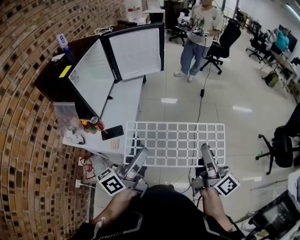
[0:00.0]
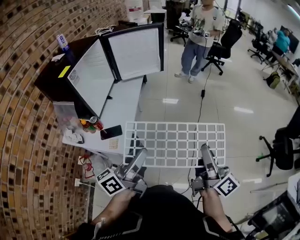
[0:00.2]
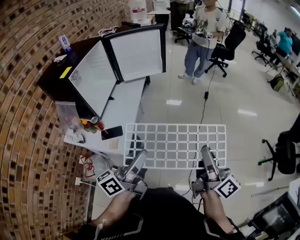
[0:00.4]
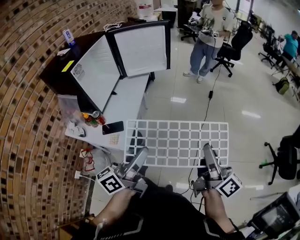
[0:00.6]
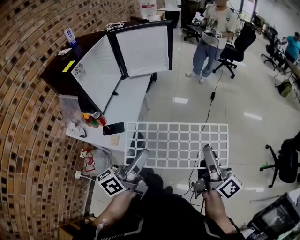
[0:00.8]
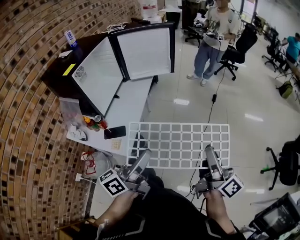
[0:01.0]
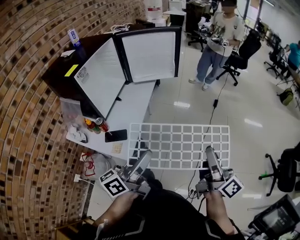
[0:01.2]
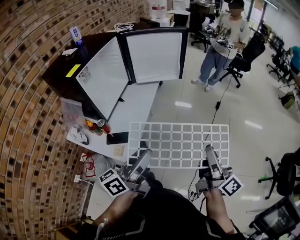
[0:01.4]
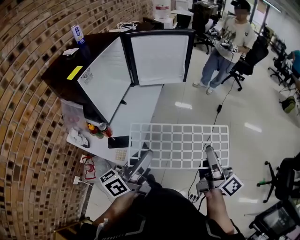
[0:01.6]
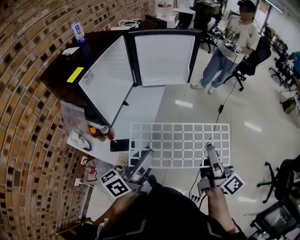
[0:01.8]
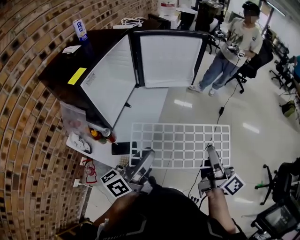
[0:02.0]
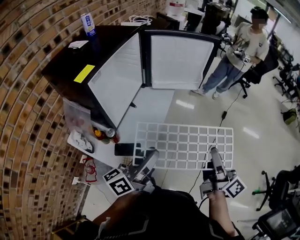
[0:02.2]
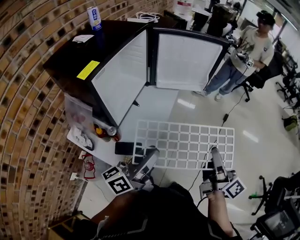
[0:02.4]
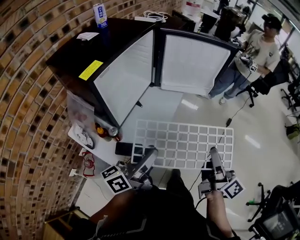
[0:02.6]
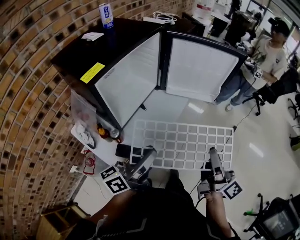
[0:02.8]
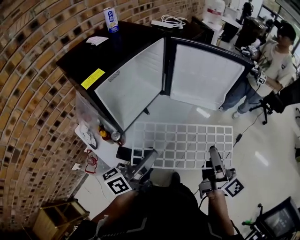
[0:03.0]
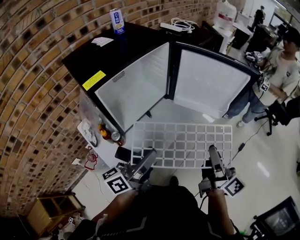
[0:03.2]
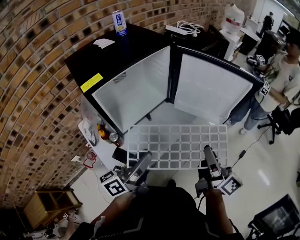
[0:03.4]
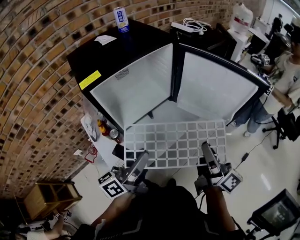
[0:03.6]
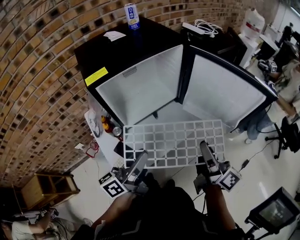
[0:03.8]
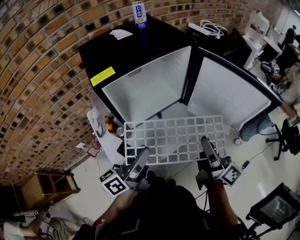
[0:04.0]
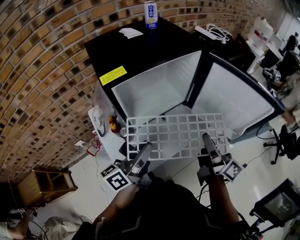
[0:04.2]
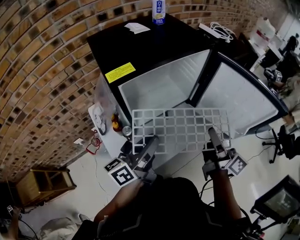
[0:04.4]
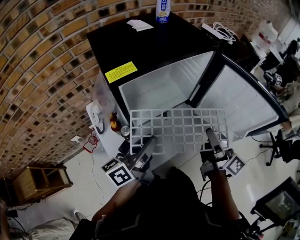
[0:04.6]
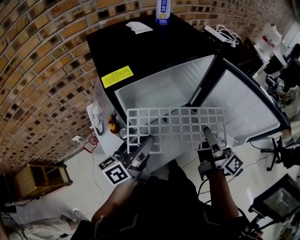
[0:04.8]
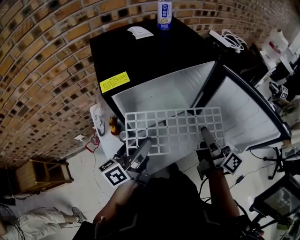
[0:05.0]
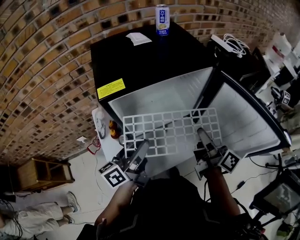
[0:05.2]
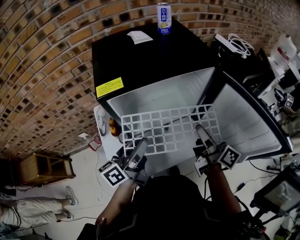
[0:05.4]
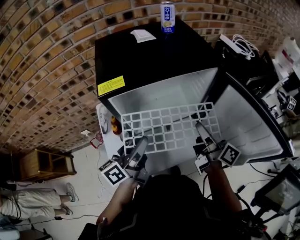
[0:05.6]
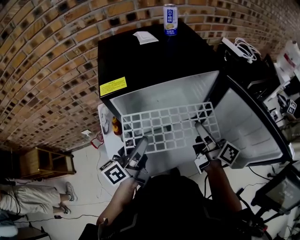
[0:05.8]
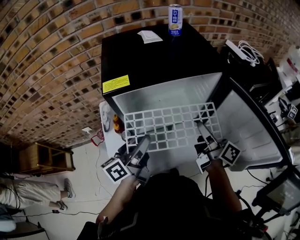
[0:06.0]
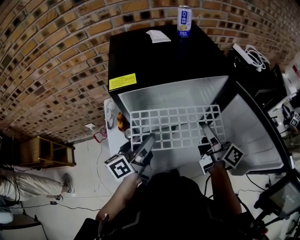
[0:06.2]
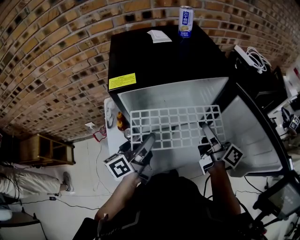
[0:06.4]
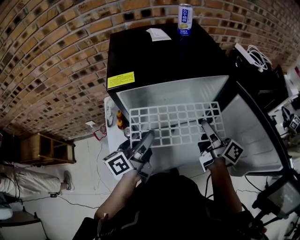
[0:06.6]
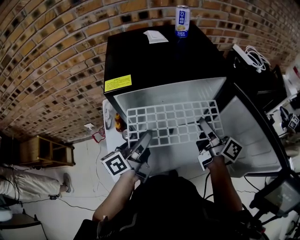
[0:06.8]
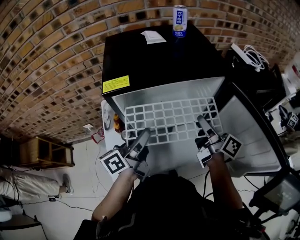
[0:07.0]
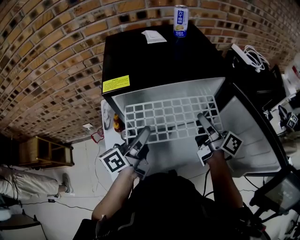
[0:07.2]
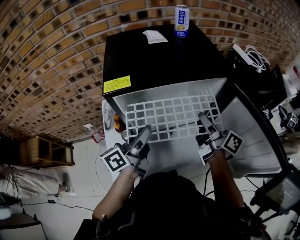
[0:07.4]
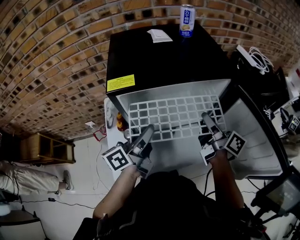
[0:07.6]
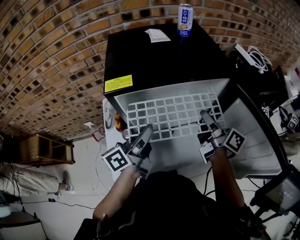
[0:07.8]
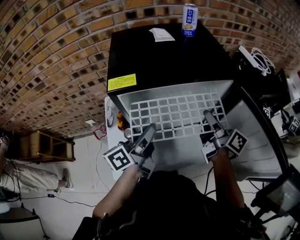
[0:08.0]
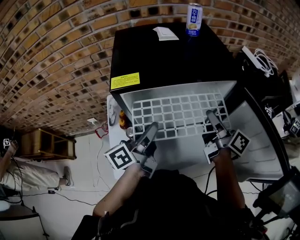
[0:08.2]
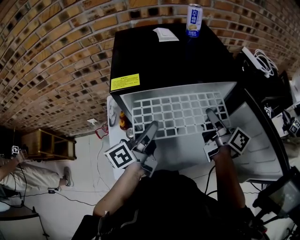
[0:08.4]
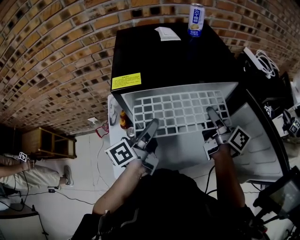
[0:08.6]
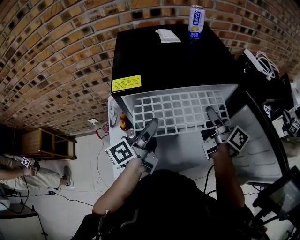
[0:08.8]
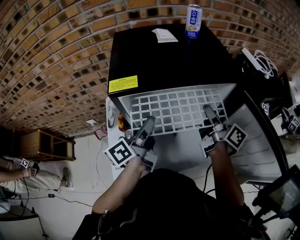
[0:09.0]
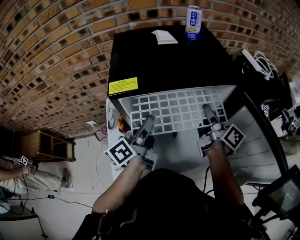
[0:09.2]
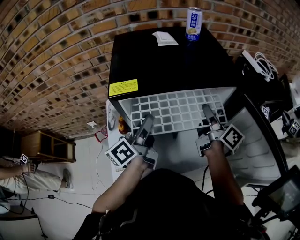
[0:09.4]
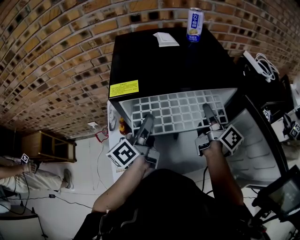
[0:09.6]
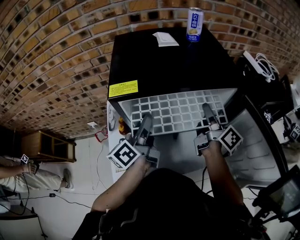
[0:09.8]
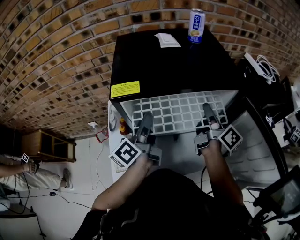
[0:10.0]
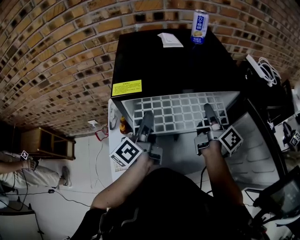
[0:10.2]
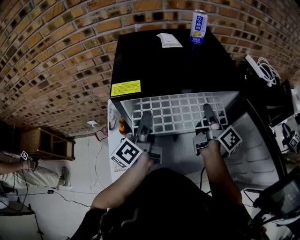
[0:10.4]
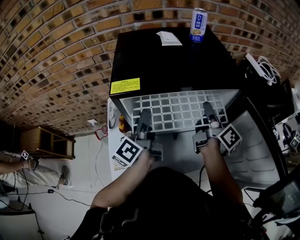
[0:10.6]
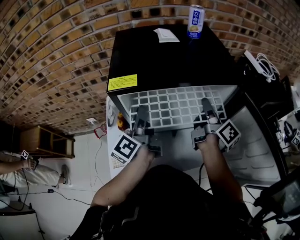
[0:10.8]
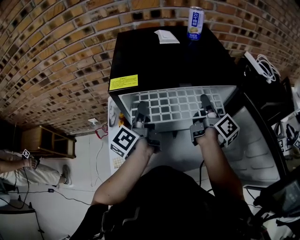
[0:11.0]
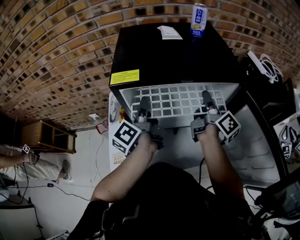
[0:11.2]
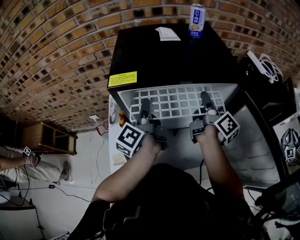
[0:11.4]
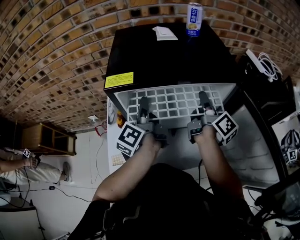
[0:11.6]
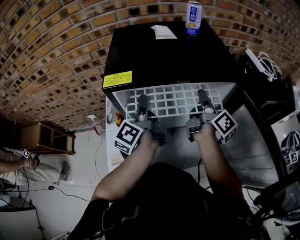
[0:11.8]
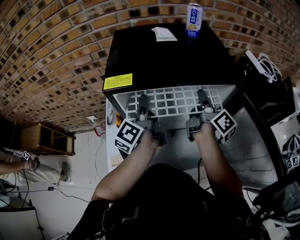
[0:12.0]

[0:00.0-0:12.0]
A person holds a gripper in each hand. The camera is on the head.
0:00.0 to 0:01.6: Both grippers move forward, about 15 cm.
0:01.6 to 0:03.0: Both grippers travel together forward and to the left, roughly 20 cm.
0:03.0 to 0:04.4: The right gripper shifts by approximately 20 cm, and turns by about 30 degrees, while the left gripper changes place by roughly 10 cm, and turns by approximately 30 degrees.
0:04.4 to 0:06.0: The right gripper heads forward, covering roughly 15 cm, and turns by approximately 20 degrees. The left gripper travels forward by about 5 cm.
0:06.0 to 0:07.6: The right gripper is displaced forward by some 5 cm.
0:07.6 to 0:09.0: The grippers make only small movements.
0:09.0 to 0:10.4: The grippers move only a little.
0:10.4 to 0:12.0: The grippers stay close to where they were, moving slightly.

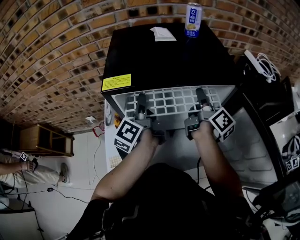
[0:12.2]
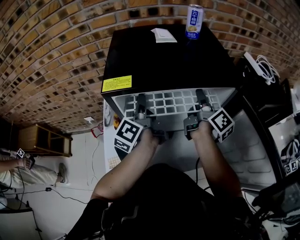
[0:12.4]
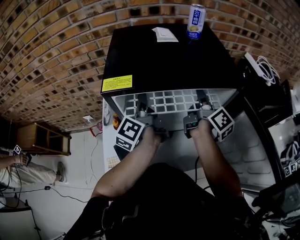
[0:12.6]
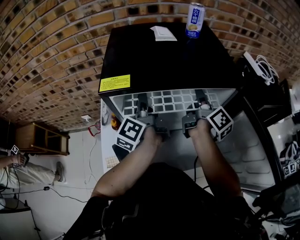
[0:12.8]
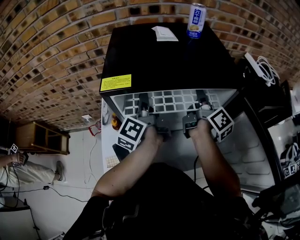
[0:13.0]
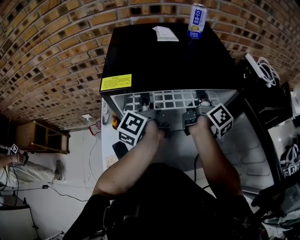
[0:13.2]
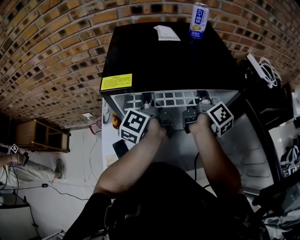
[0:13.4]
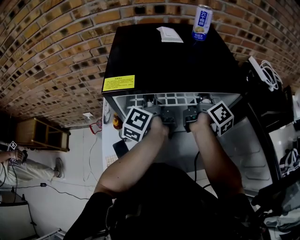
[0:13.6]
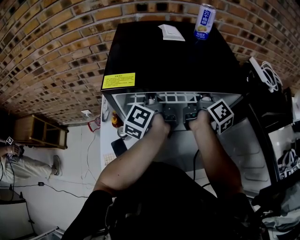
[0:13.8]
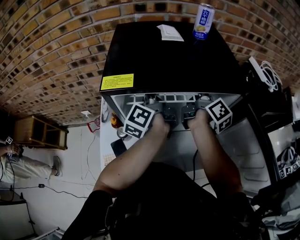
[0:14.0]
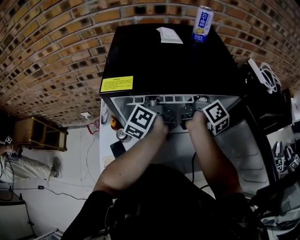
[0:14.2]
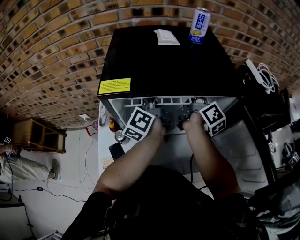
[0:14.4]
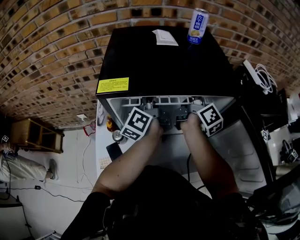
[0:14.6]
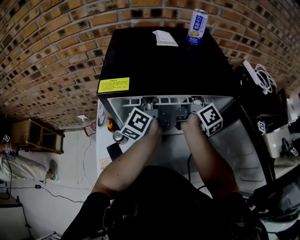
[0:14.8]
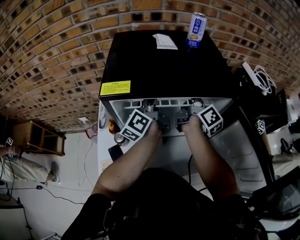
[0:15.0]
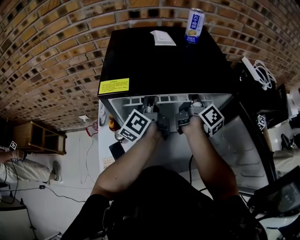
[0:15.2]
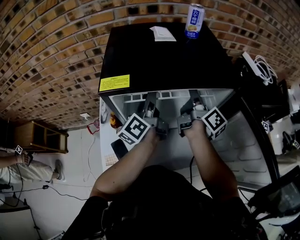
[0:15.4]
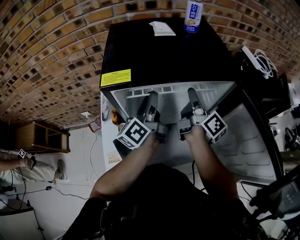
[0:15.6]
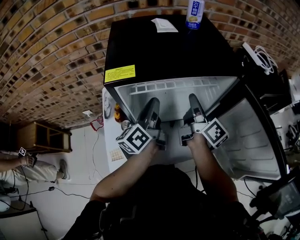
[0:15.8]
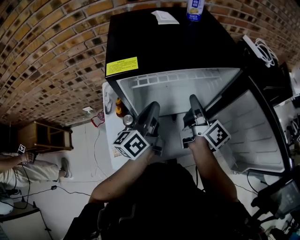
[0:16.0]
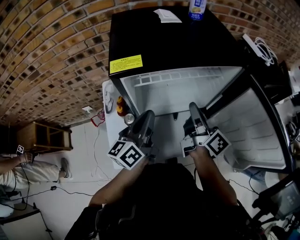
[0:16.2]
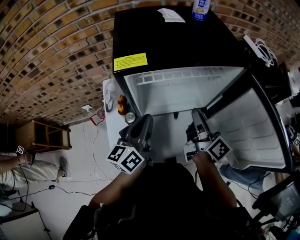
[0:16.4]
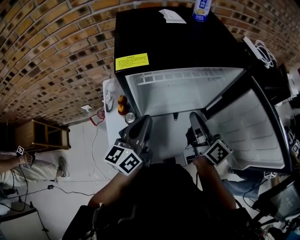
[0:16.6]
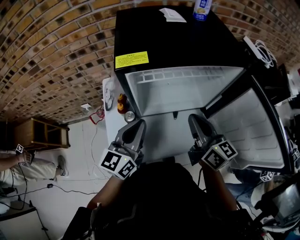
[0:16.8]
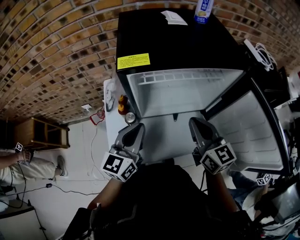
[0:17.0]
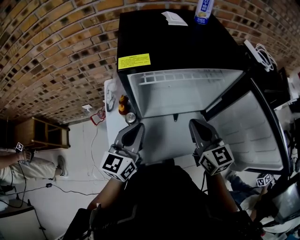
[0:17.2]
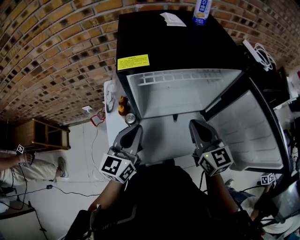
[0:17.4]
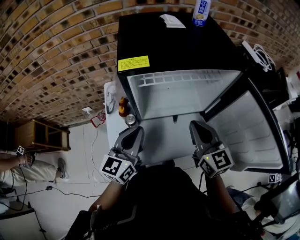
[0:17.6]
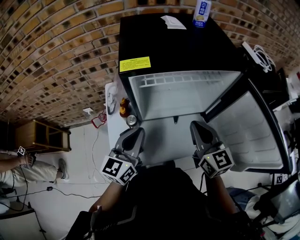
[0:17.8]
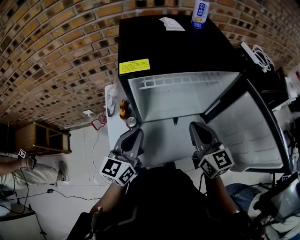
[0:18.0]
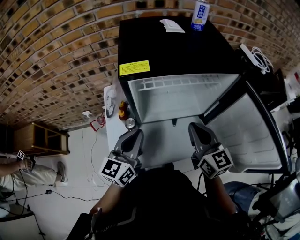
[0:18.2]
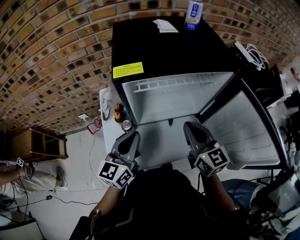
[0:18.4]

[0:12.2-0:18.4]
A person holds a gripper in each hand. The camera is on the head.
0:12.2 to 0:13.8: Both grippers move forward, about 5 cm.
0:13.8 to 0:15.4: The left gripper swivels some 20 degrees.
0:15.4 to 0:16.8: The grippers both shift backward by roughly 20 cm. The left gripper changes its angle by roughly 50 degrees, and closes its fingers; the right gripper rolls counterclockwise, seen from behind, by some 40 degrees, and closes its fingers.

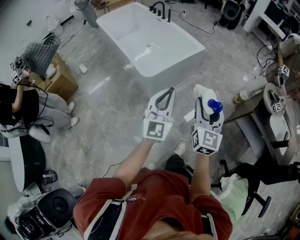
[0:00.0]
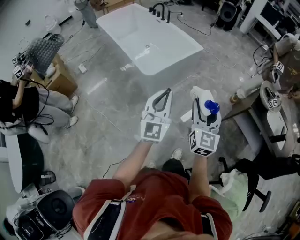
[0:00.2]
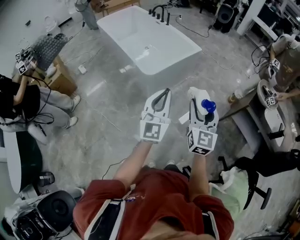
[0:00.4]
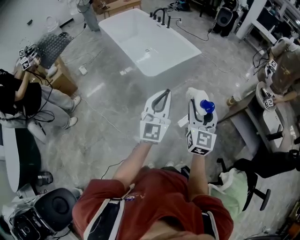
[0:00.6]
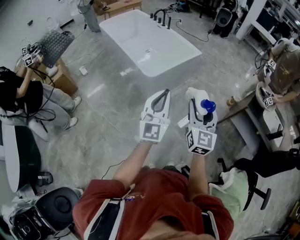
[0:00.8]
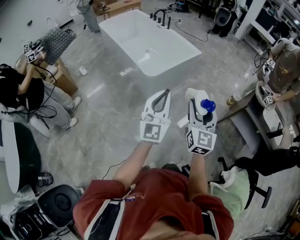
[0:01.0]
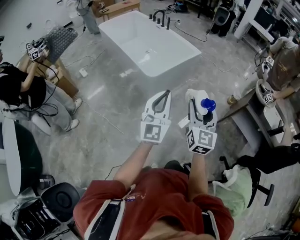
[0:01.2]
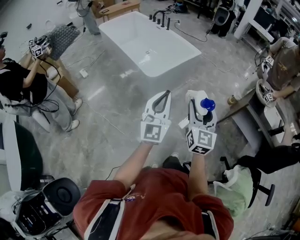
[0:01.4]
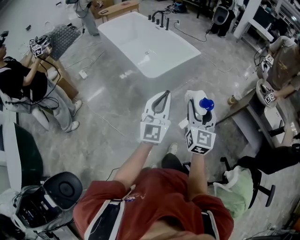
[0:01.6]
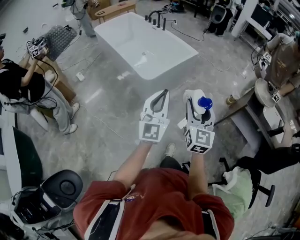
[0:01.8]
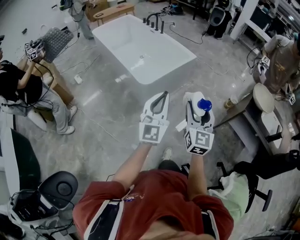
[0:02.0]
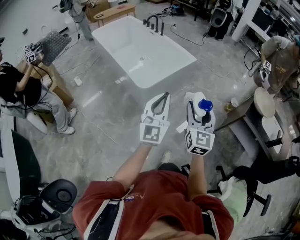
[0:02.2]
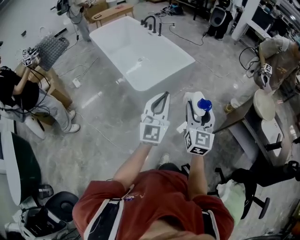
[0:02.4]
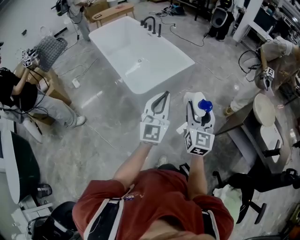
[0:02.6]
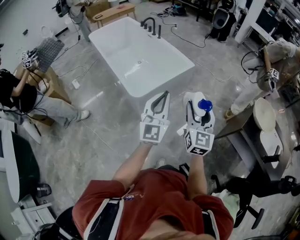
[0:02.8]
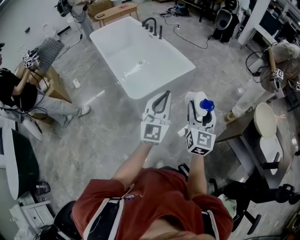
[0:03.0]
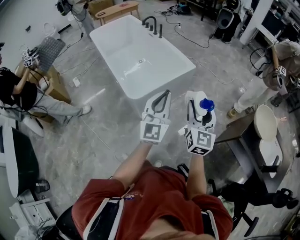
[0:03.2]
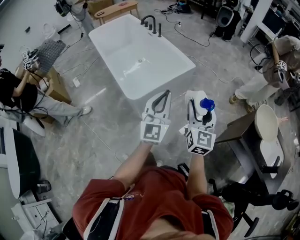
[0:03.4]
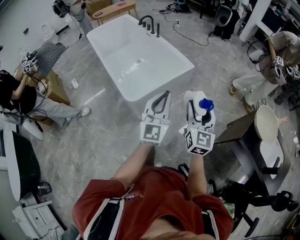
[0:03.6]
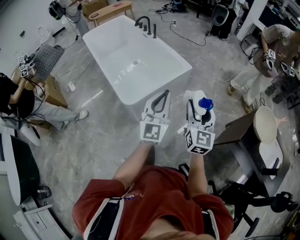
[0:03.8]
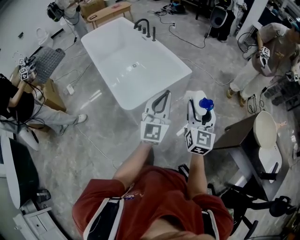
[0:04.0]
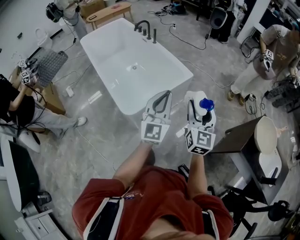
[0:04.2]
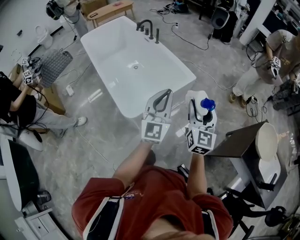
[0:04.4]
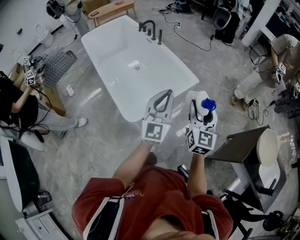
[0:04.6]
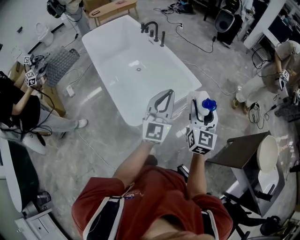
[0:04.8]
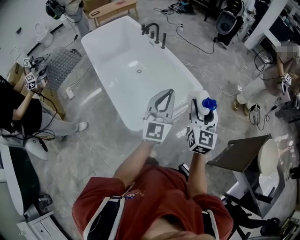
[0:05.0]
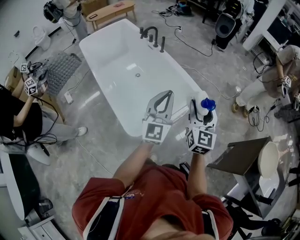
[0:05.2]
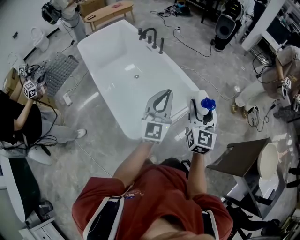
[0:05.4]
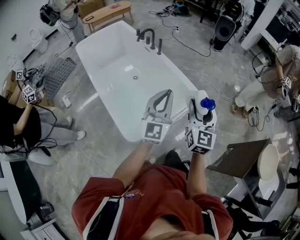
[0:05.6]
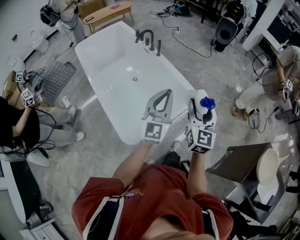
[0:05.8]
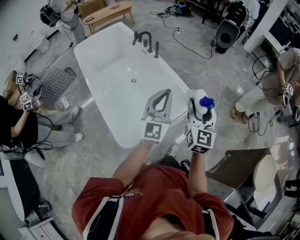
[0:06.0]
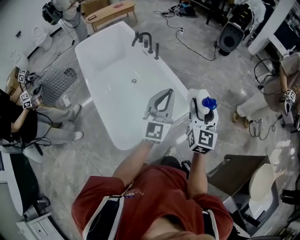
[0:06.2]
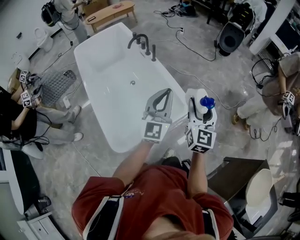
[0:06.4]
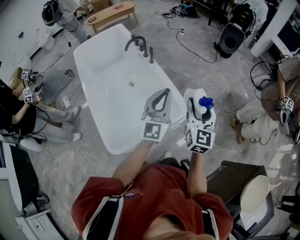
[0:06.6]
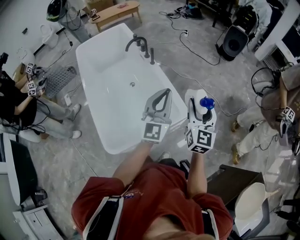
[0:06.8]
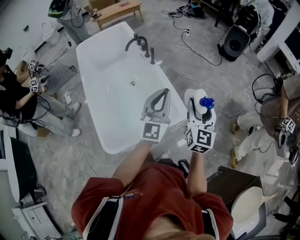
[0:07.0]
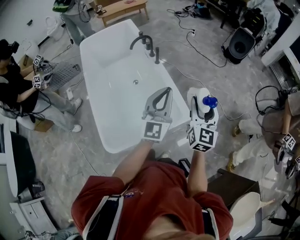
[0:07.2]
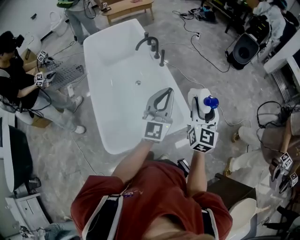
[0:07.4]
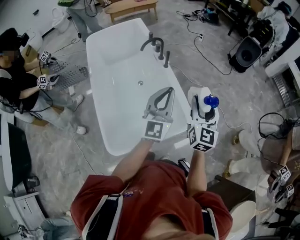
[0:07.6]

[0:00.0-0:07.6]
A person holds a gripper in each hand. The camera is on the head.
0:00.0 to 0:01.6: Both grippers travel together backward and to the left, approximately 15 cm.
0:01.6 to 0:03.0: Both grippers travel together forward and to the right, roughly 25 cm.
0:03.0 to 0:04.6: Both grippers move forward, some 25 cm.
0:04.6 to 0:06.0: The two grippers go approximately 20 cm forward.
0:06.0 to 0:07.6: Both grippers travel together forward, some 15 cm.
